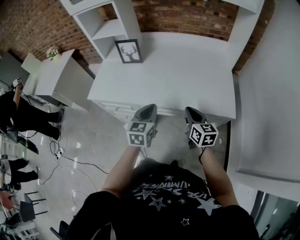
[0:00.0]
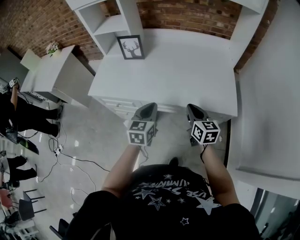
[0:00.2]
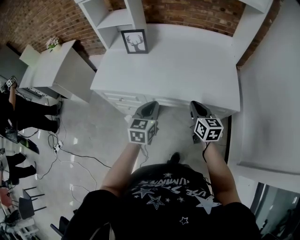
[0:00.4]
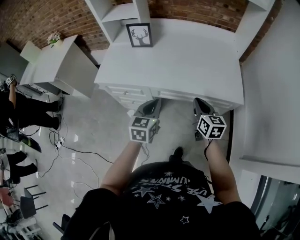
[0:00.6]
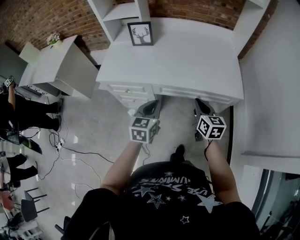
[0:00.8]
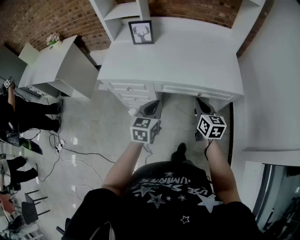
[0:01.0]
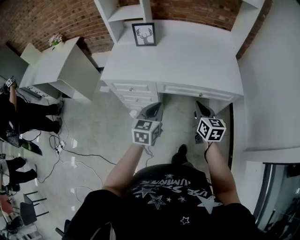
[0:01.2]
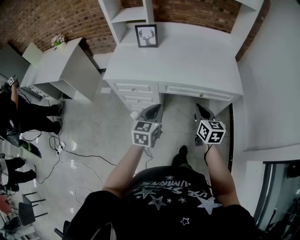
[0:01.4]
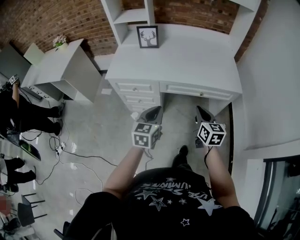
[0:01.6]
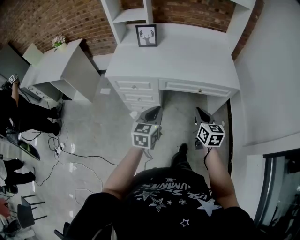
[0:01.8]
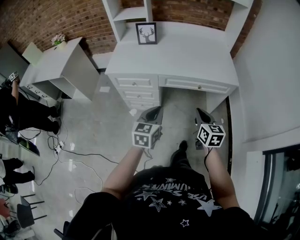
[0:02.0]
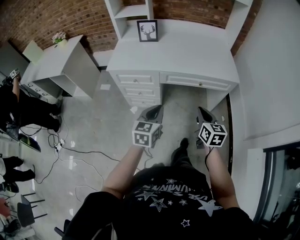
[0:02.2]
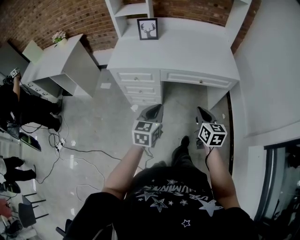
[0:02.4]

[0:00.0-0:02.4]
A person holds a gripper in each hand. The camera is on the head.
0:00.0 to 0:01.2: Both grippers move backward and to the left, approximately 15 cm.
0:01.2 to 0:02.4: Both grippers travel together backward, about 15 cm.

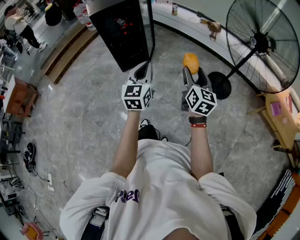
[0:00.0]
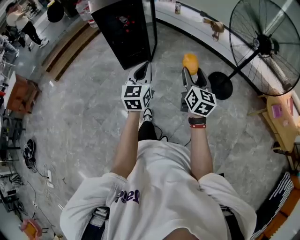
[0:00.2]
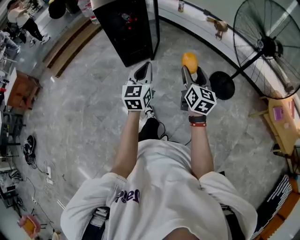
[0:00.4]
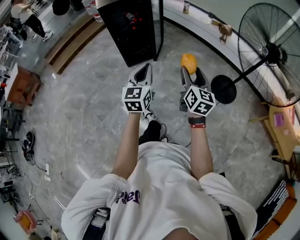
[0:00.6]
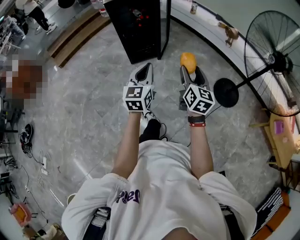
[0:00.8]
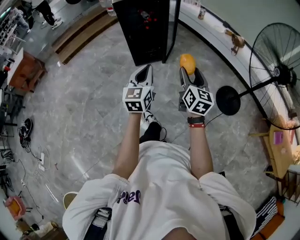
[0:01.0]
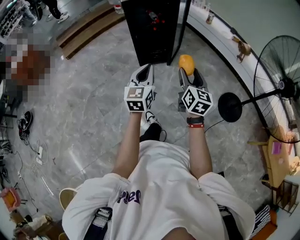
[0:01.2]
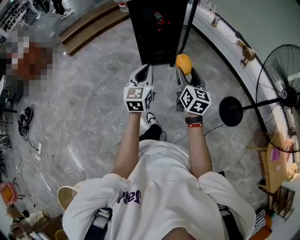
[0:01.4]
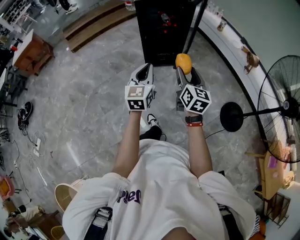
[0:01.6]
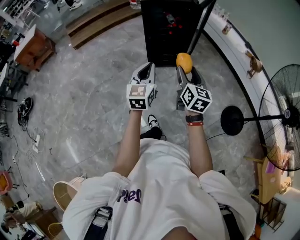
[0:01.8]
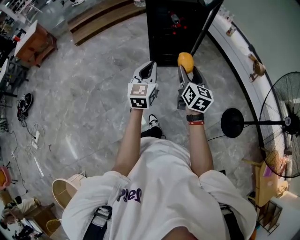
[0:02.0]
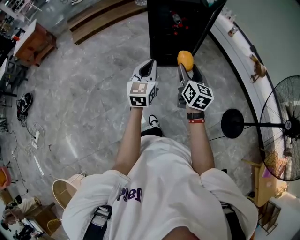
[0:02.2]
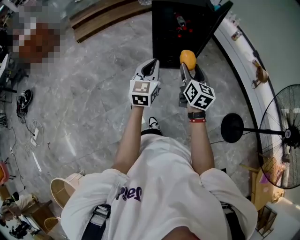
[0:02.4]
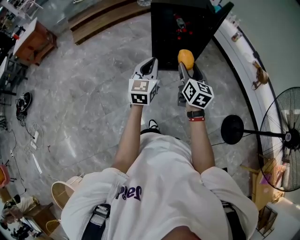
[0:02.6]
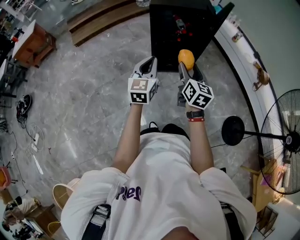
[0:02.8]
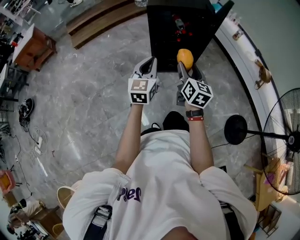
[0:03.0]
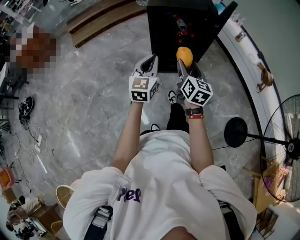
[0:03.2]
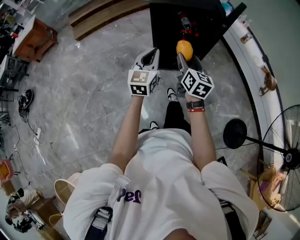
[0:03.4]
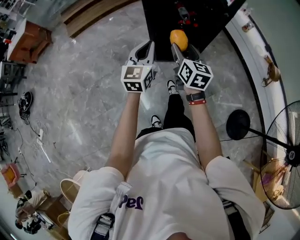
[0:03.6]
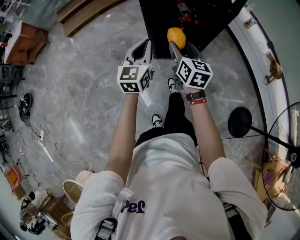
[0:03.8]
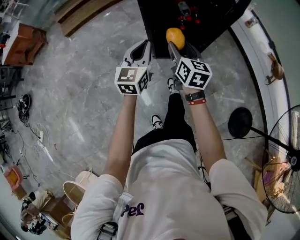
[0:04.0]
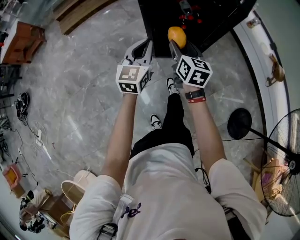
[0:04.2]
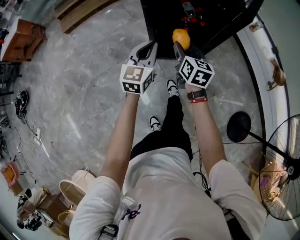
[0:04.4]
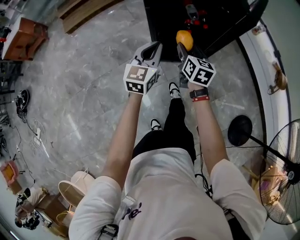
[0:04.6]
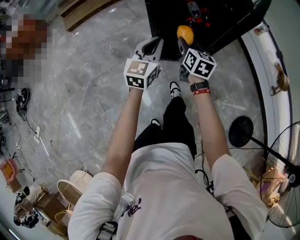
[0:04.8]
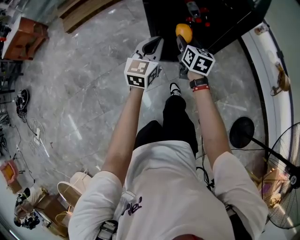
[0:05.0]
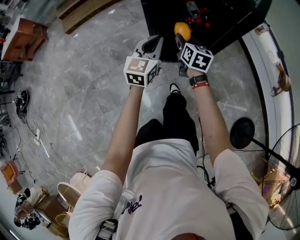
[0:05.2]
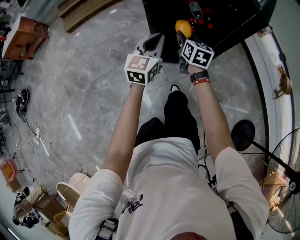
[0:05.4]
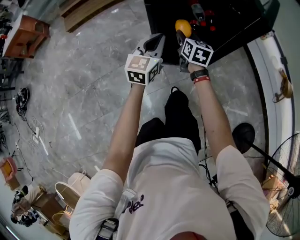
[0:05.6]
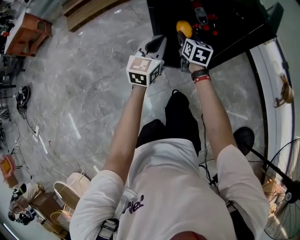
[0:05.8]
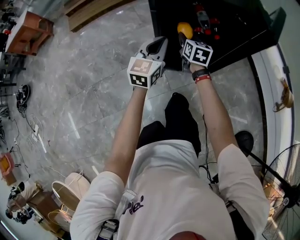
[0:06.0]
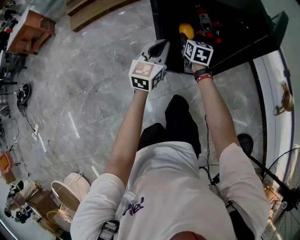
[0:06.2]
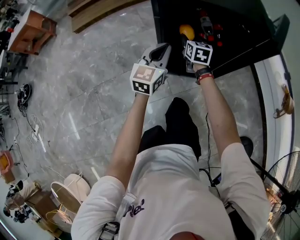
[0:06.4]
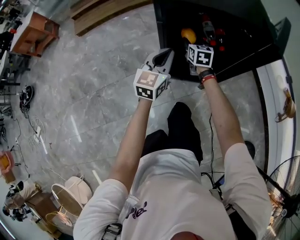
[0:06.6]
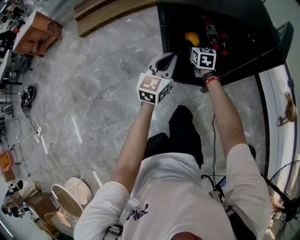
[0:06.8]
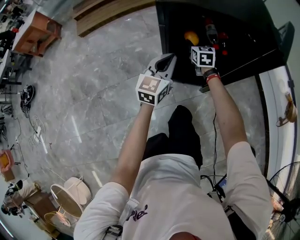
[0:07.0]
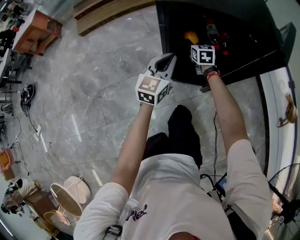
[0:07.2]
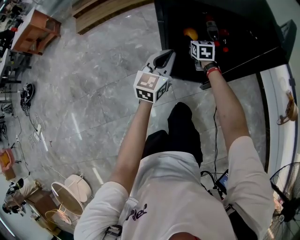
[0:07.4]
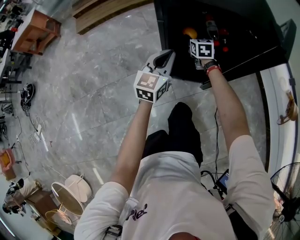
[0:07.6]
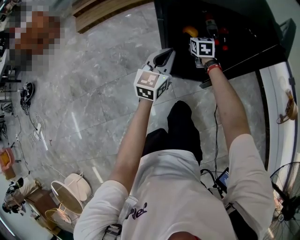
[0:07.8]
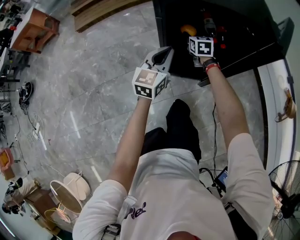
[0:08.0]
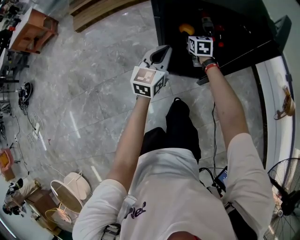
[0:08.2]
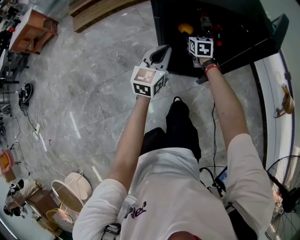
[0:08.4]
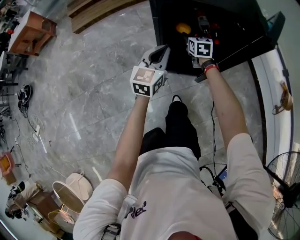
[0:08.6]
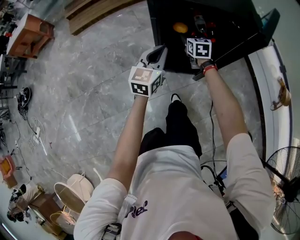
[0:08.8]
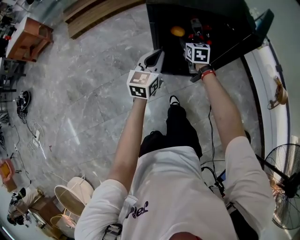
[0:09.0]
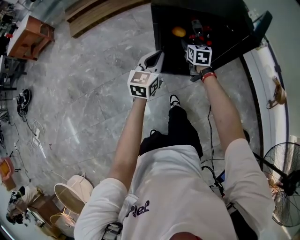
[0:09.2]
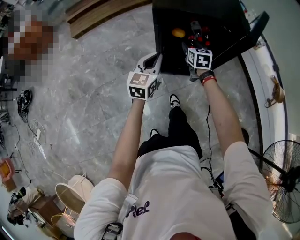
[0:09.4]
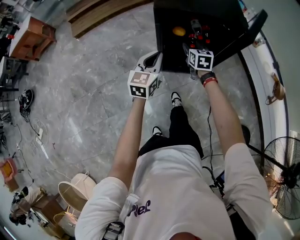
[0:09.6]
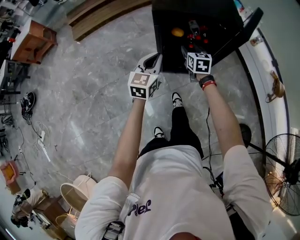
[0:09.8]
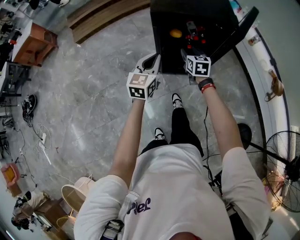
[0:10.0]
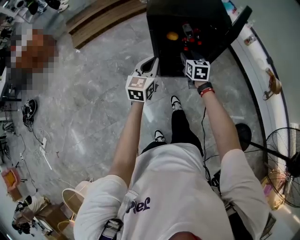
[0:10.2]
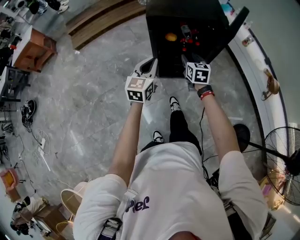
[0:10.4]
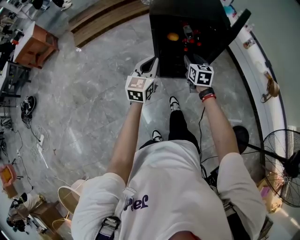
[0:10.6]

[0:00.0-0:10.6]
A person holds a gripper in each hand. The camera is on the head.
0:00.0 to 0:01.6: Both grippers move to the left and forward, roughly 30 cm. The right gripper swivels roughly 20 degrees; the left gripper changes its angle by approximately 20 degrees.
0:01.6 to 0:03.0: Both grippers move forward, approximately 25 cm.
0:03.0 to 0:04.6: Both grippers travel together forward and downward, roughly 30 cm.
0:04.6 to 0:06.0: The left gripper shifts some 10 cm forward and downward; the right gripper moves forward and downward, approximately 20 cm.
0:06.0 to 0:07.6: The right gripper goes approximately 10 cm forward and downward.
0:07.6 to 0:09.0: The left gripper is displaced upward and backward by roughly 10 cm; the right gripper travels upward and backward by about 15 cm.
0:09.0 to 0:10.6: The right gripper shifts roughly 25 cm backward and upward; the left gripper travels upward and backward by approximately 15 cm.

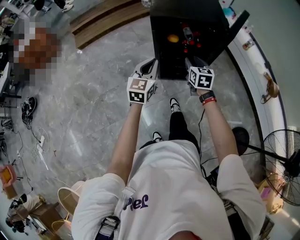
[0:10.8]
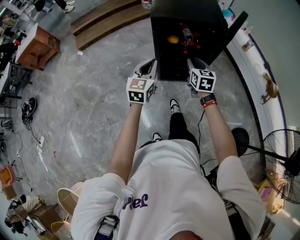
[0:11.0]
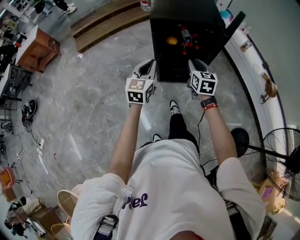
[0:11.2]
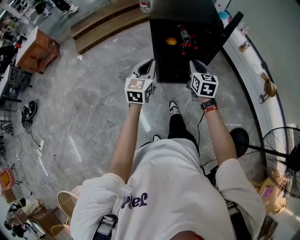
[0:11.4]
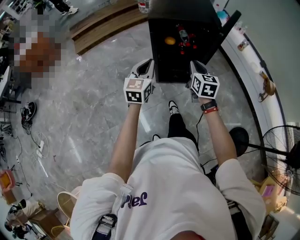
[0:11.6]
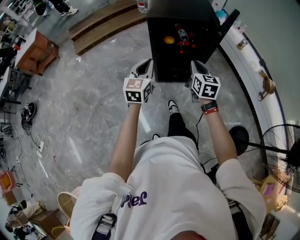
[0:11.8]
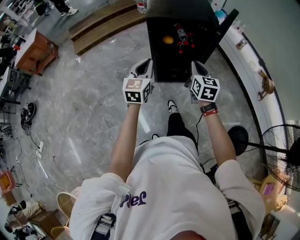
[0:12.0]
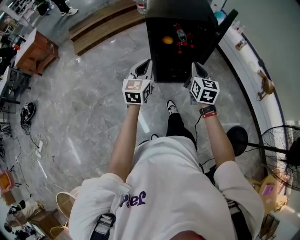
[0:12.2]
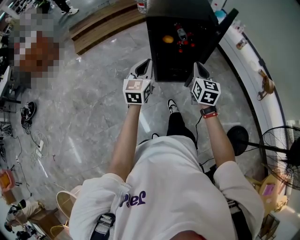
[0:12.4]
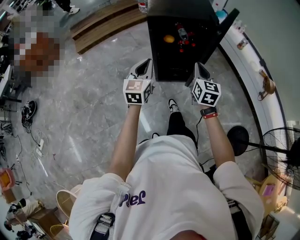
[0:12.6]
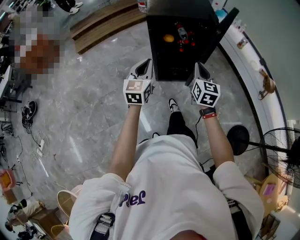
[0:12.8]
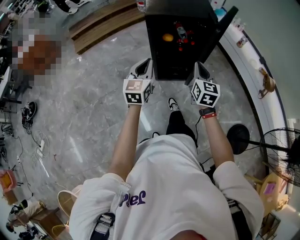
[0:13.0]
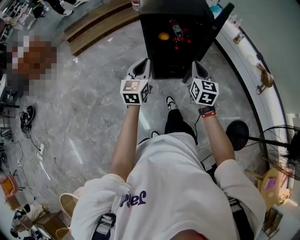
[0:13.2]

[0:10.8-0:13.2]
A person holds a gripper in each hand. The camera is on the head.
0:10.8 to 0:12.0: The left gripper heads backward, covering some 5 cm. The right gripper goes some 15 cm backward and upward, and closes up.
0:12.0 to 0:13.2: The grippers make only small movements.

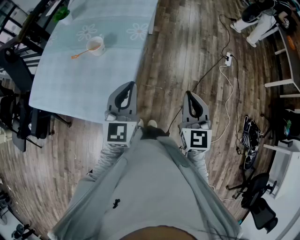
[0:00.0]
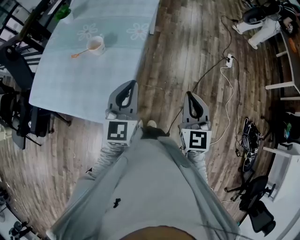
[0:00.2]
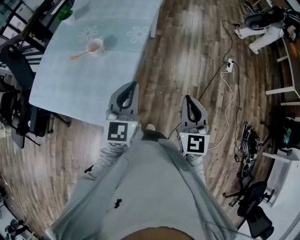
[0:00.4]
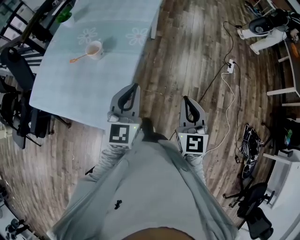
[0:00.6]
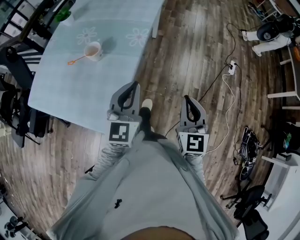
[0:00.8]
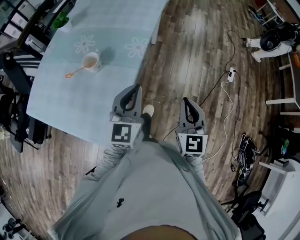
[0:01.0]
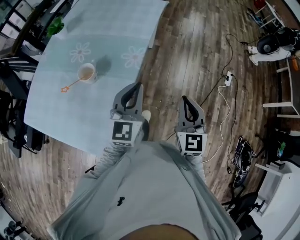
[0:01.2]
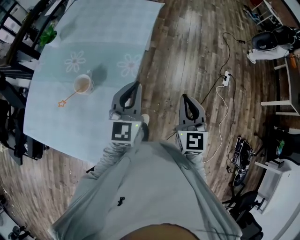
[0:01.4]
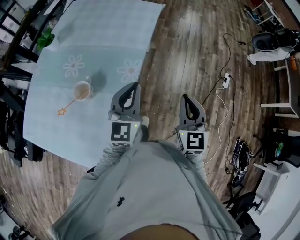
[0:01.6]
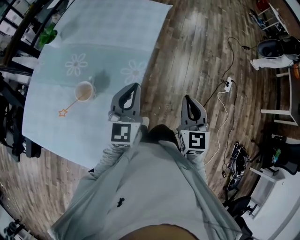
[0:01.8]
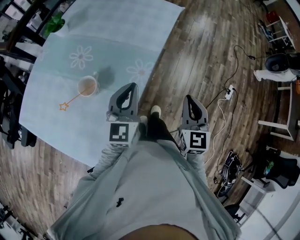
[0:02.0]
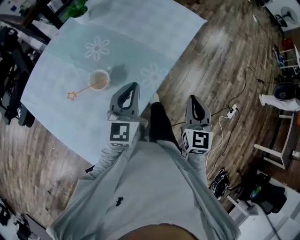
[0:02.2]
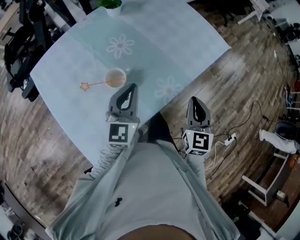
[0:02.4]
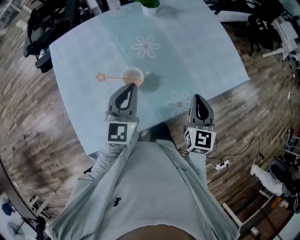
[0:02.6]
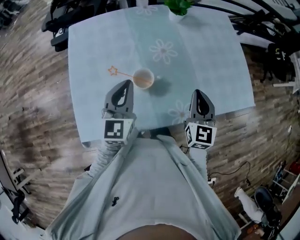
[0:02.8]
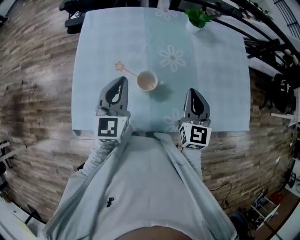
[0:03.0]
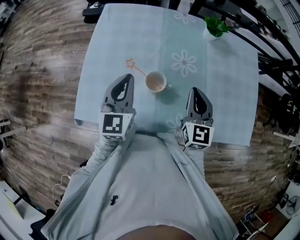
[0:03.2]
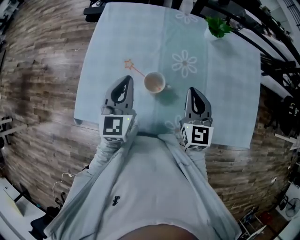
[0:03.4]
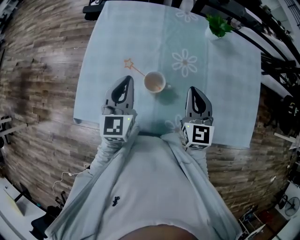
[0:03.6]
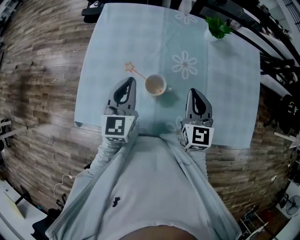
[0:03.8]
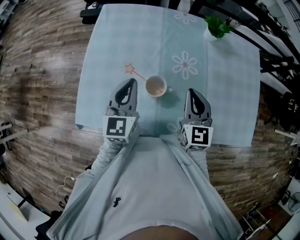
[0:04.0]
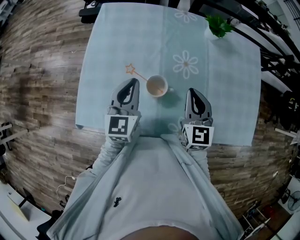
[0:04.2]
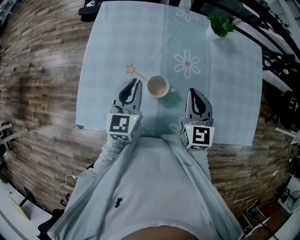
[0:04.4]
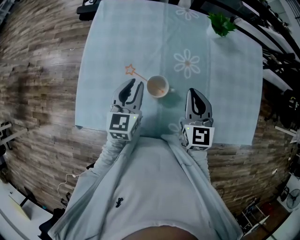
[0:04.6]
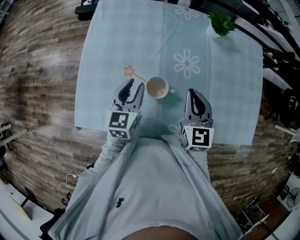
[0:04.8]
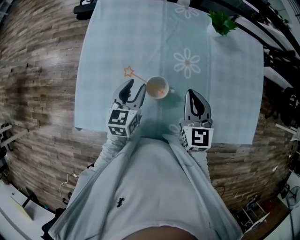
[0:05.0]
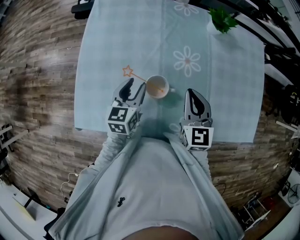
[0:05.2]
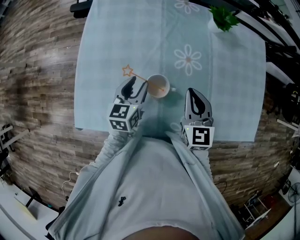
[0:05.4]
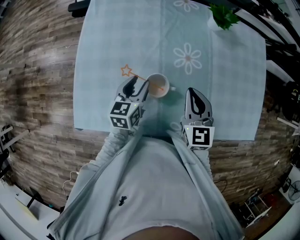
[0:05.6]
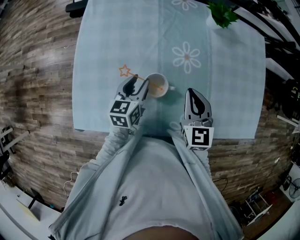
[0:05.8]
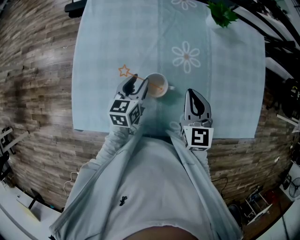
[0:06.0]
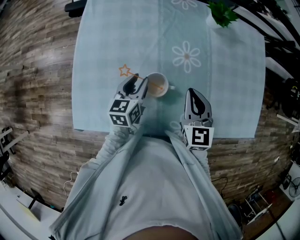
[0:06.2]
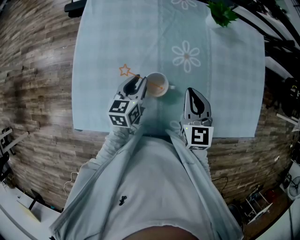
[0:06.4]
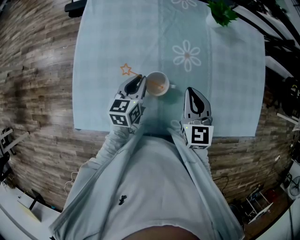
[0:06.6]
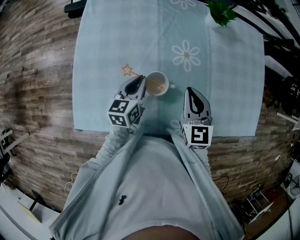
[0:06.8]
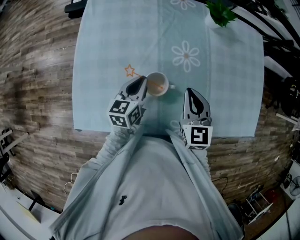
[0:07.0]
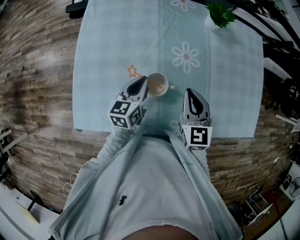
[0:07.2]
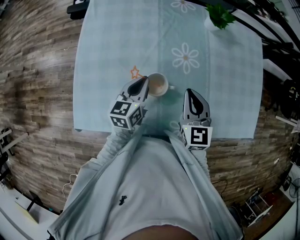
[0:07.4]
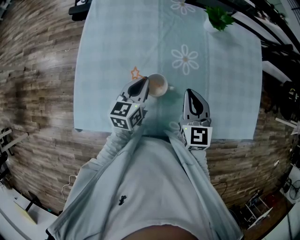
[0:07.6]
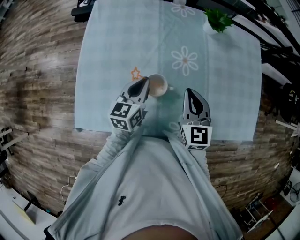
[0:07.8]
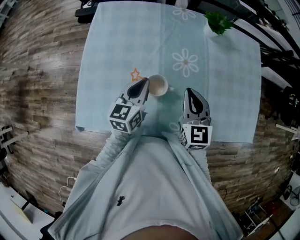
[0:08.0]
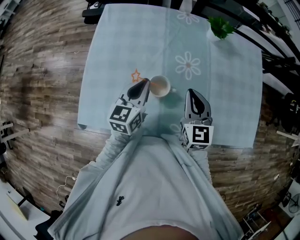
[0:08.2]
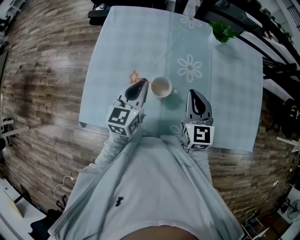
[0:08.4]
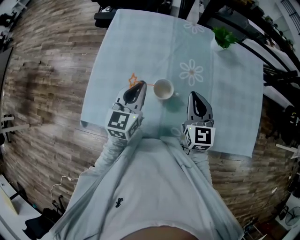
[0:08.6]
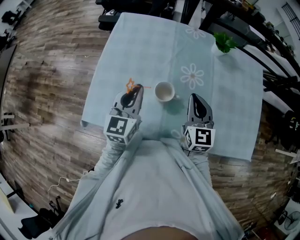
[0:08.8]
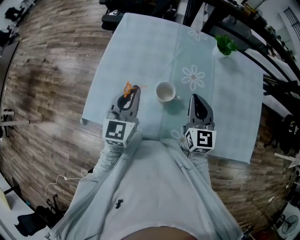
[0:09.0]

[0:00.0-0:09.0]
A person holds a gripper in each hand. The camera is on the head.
0:00.0 to 0:01.6: The two grippers go approximately 25 cm forward.
0:01.6 to 0:03.0: The left gripper changes place by approximately 30 cm, and swivels roughly 80 degrees, while the right gripper moves approximately 40 cm, and turns by roughly 70 degrees.
0:03.0 to 0:04.4: The left gripper is displaced downward by approximately 5 cm; the right gripper goes some 5 cm to the left.
0:04.4 to 0:06.0: The left gripper goes approximately 10 cm downward, swivels approximately 20 degrees, and opens.
0:06.0 to 0:07.6: The left gripper closes.
0:07.6 to 0:09.0: The right gripper travels upward by some 5 cm. Meanwhile the left gripper shifts roughly 15 cm upward, backward and to the left, and swivels approximately 30 degrees.
